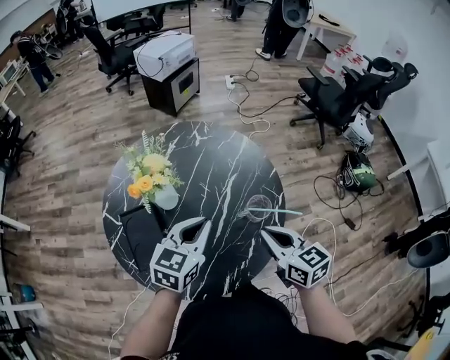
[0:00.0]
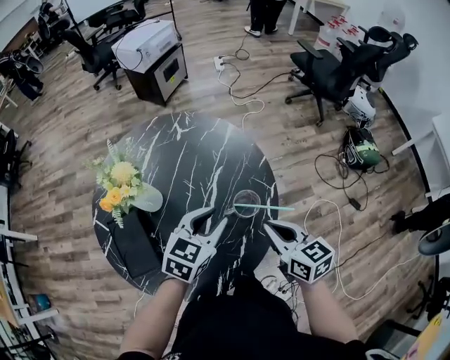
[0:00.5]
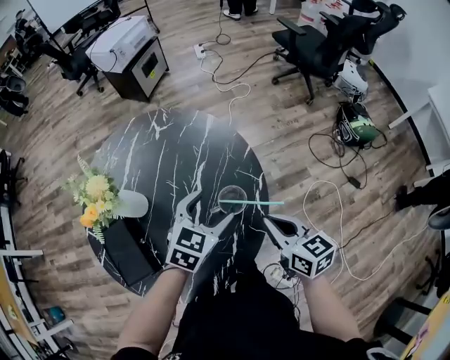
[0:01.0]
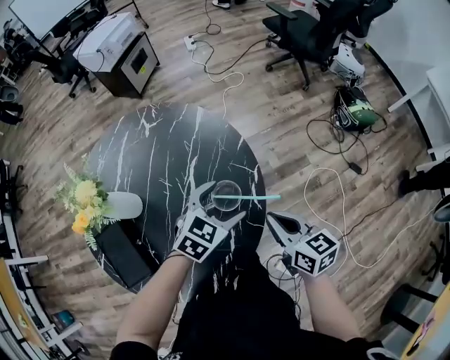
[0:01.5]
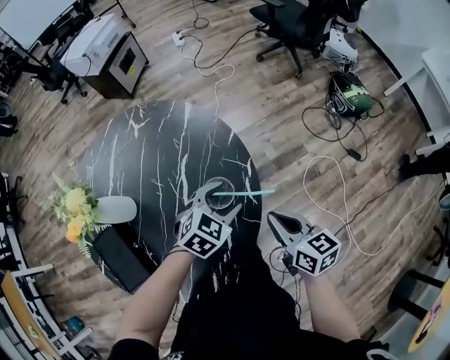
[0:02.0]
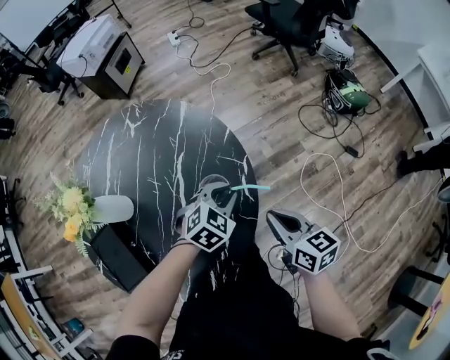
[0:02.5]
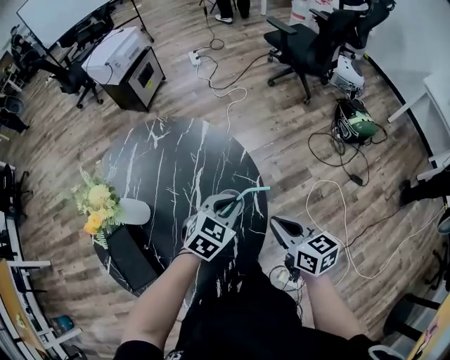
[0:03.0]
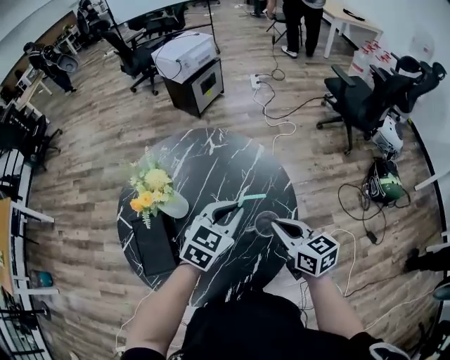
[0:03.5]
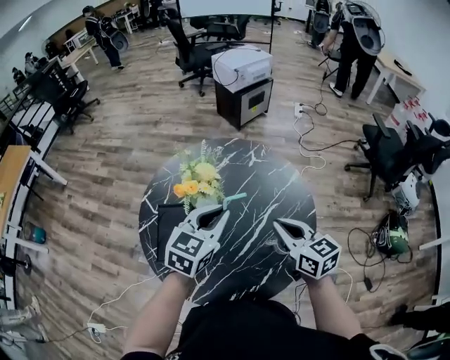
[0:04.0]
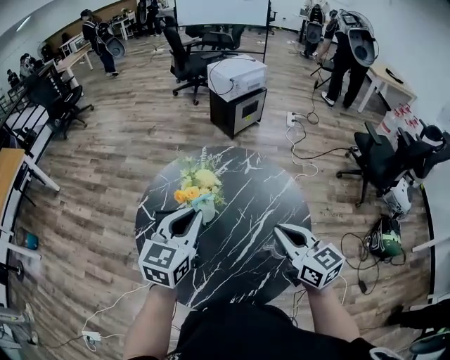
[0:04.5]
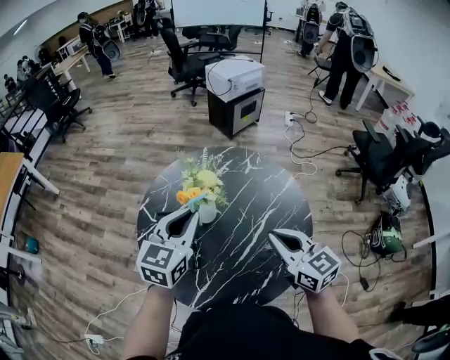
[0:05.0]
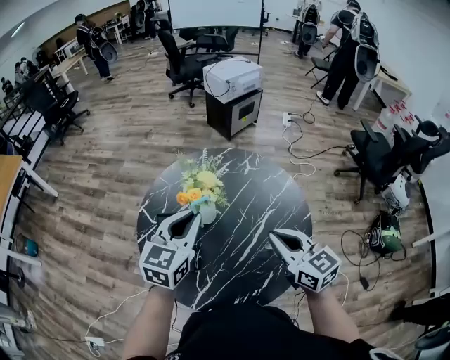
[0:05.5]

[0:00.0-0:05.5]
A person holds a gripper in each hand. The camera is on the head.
0:00.0 to 0:02.0: The two grippers go some 25 cm to the right and downward. The right gripper swivels roughly 20 degrees, while the left gripper turns by roughly 40 degrees, and opens its fingers.
0:02.0 to 0:03.5: The right gripper heads to the left, upward and forward, covering about 15 cm, and swivels about 30 degrees; the left gripper travels upward and to the left by approximately 20 cm, swivels approximately 30 degrees, and closes.
0:03.5 to 0:05.5: The left gripper shifts about 25 cm to the left and upward, and swivels about 30 degrees. Meanwhile the right gripper is displaced to the left and upward by some 15 cm, and turns by about 20 degrees.

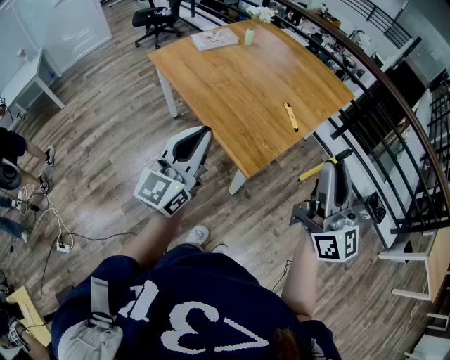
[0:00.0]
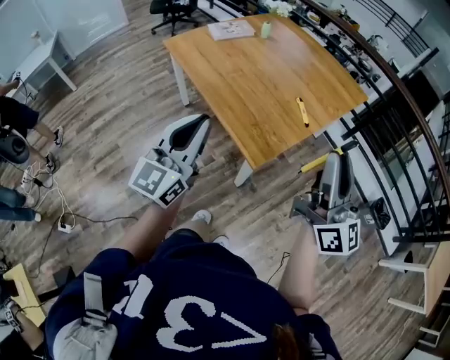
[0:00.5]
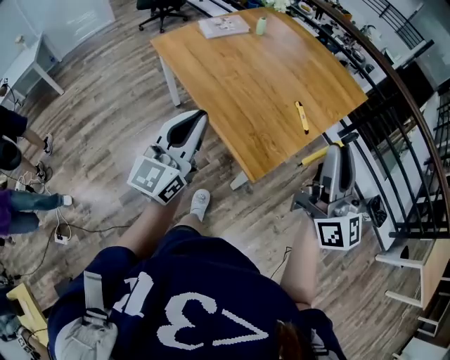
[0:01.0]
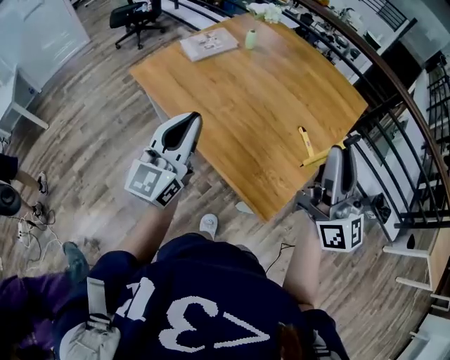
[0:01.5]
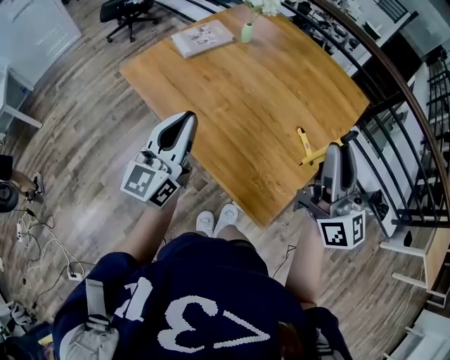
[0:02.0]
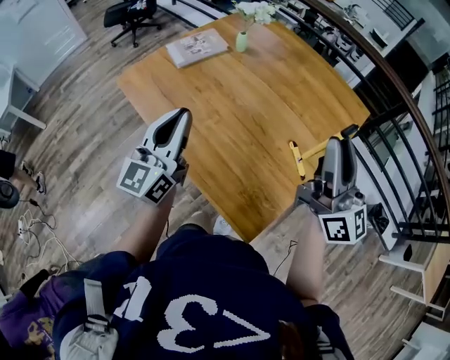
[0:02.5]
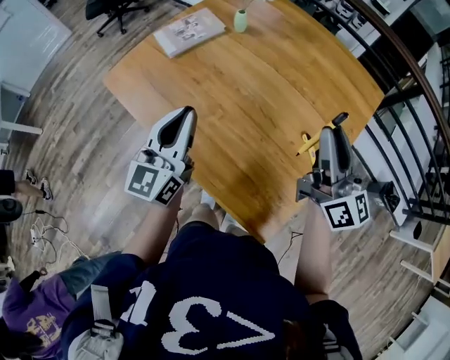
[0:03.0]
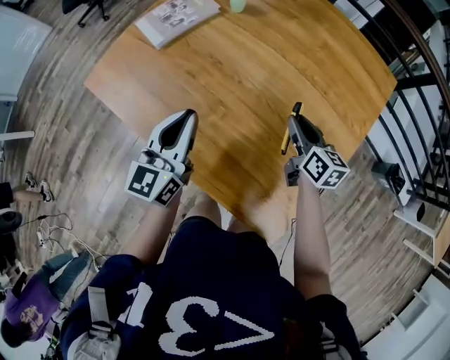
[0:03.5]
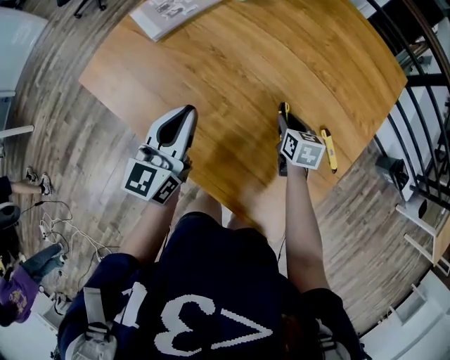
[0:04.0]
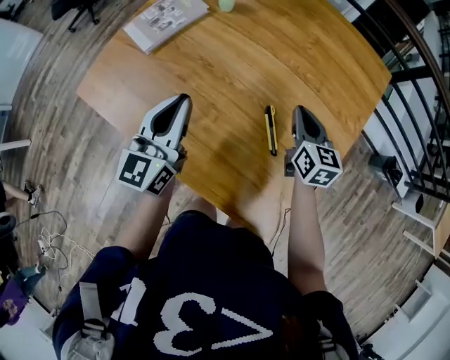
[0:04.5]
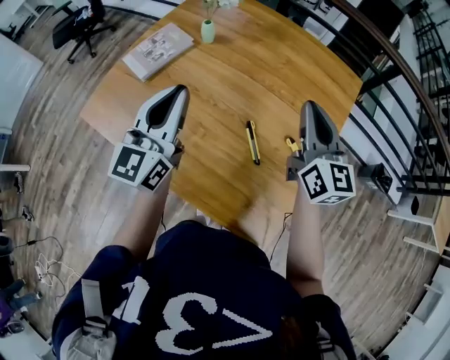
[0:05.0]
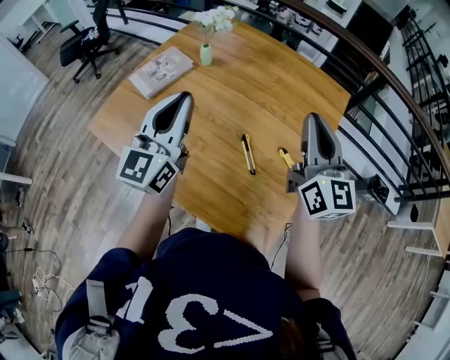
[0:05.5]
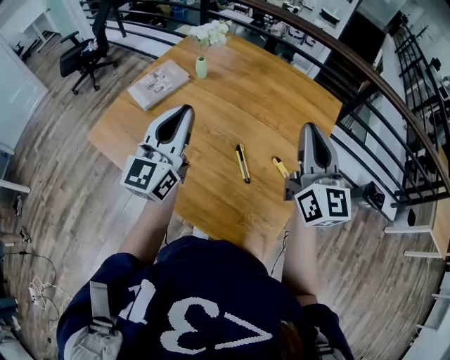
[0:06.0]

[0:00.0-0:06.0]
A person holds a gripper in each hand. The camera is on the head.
0:00.0 to 0:02.0: The right gripper is displaced forward by some 25 cm. Meanwhile the left gripper shifts roughly 30 cm forward and to the left.
0:02.0 to 0:04.0: The left gripper is displaced forward and downward by about 25 cm, while the right gripper goes roughly 50 cm downward and forward, and points its fingers roughly 70 degrees further downward.
0:04.0 to 0:06.0: The right gripper goes roughly 40 cm upward, tips its fingers upward by some 60 degrees, and closes up. The left gripper heads upward, covering roughly 20 cm, and turns by some 20 degrees.

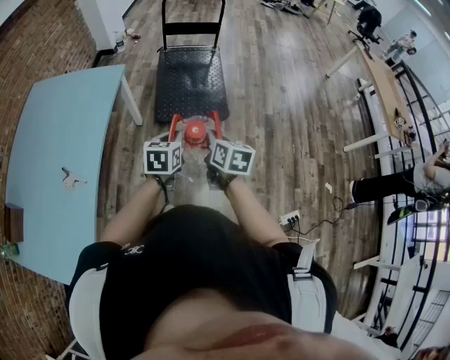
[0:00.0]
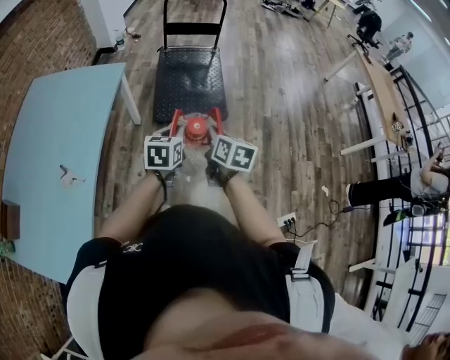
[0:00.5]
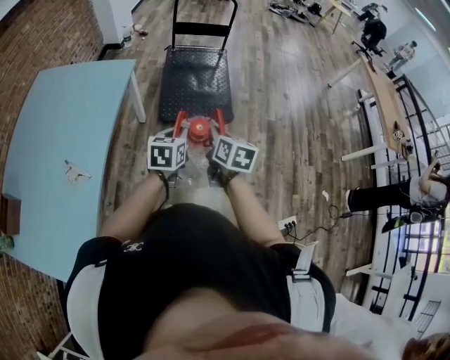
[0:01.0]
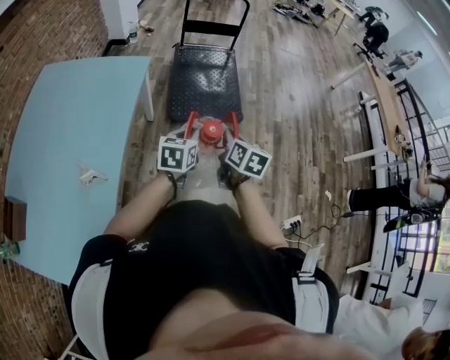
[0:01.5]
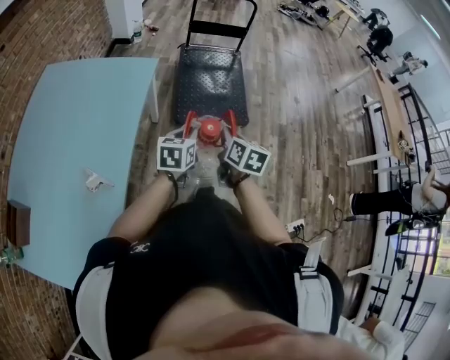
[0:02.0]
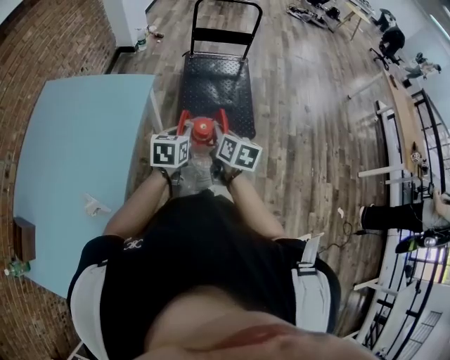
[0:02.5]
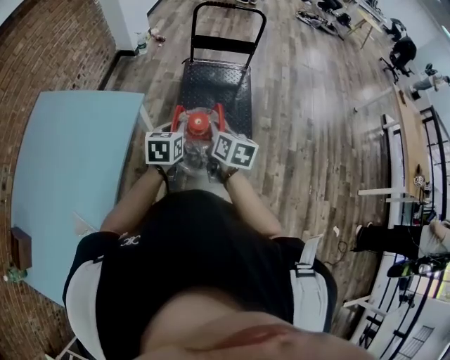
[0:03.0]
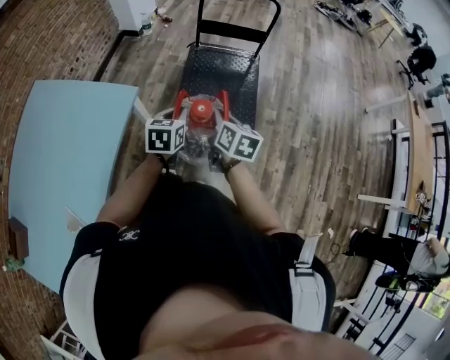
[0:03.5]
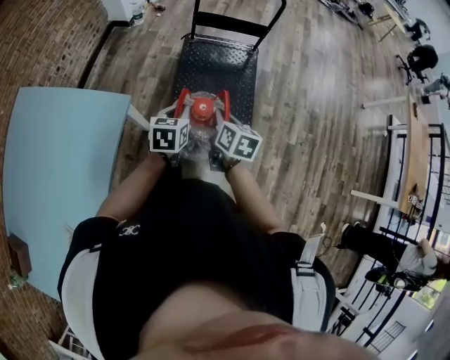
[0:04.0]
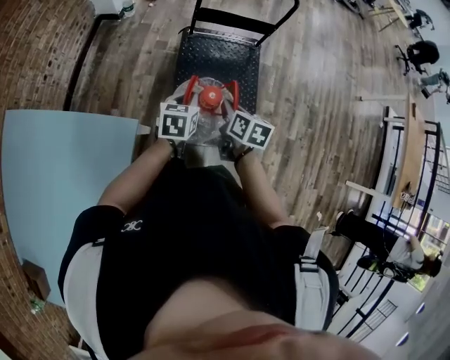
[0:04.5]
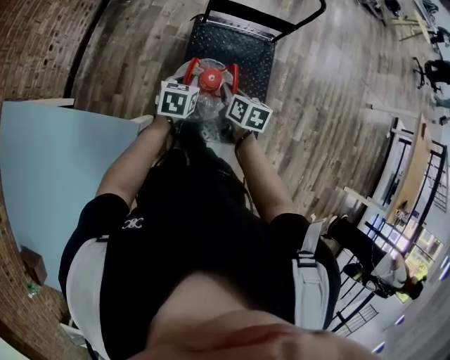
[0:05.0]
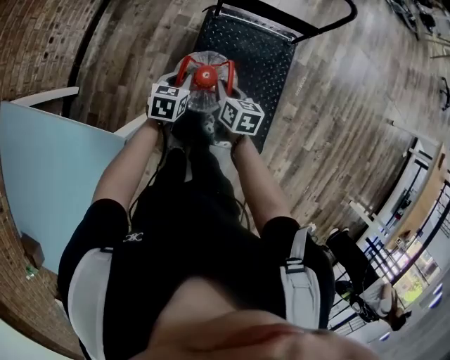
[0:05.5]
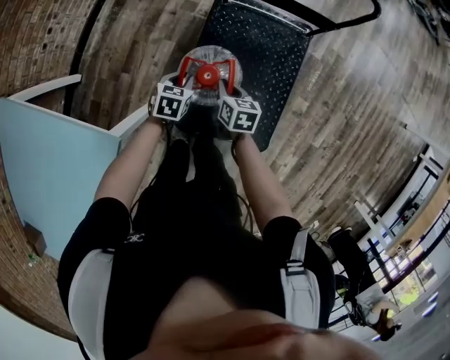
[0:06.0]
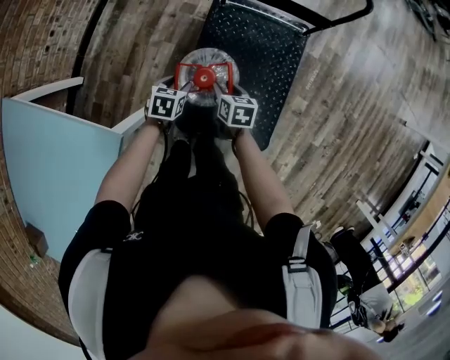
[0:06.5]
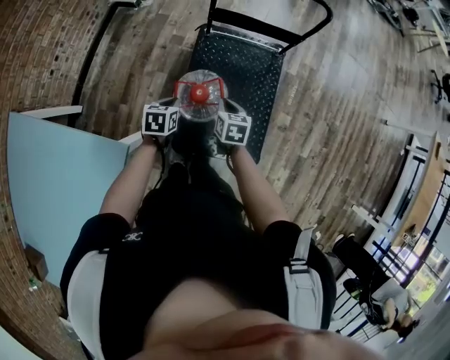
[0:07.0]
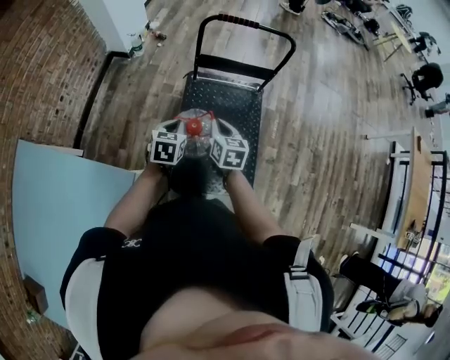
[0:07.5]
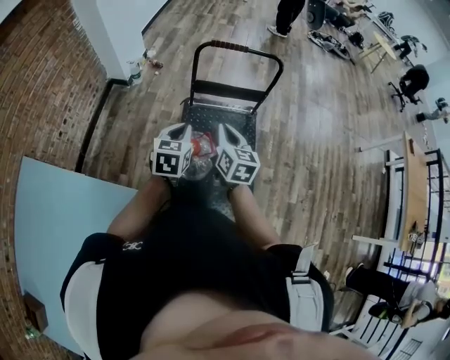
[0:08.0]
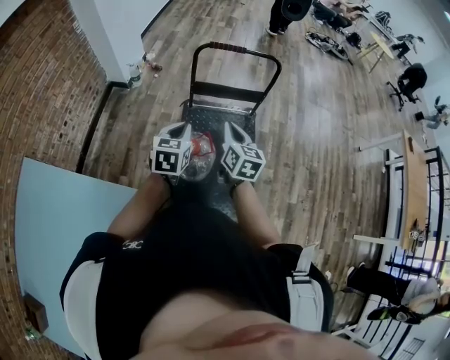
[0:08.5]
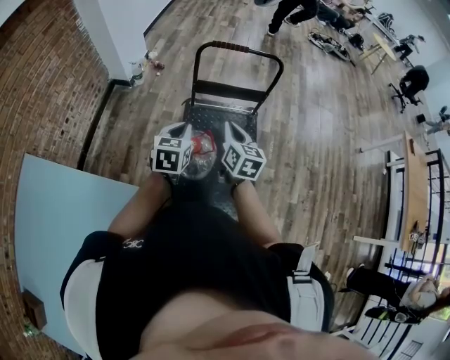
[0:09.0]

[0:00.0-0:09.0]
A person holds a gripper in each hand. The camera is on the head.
0:00.0 to 0:02.0: Both grippers travel together to the left, about 15 cm.
0:02.0 to 0:04.5: Both grippers are carried forward, some 50 cm.
0:04.5 to 0:07.0: Both grippers move downward and forward, about 20 cm. The left gripper opens and closes again, while the right gripper opens, then closes once more.
0:07.0 to 0:09.0: Both grippers move upward, roughly 25 cm. The left gripper swivels roughly 30 degrees, while the right gripper swivels about 30 degrees.

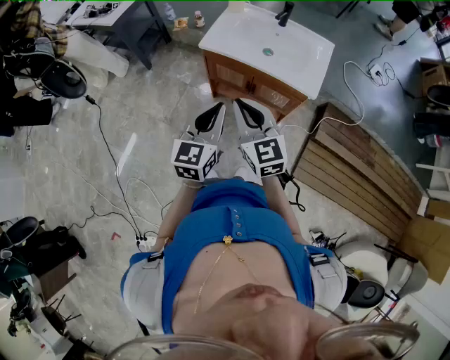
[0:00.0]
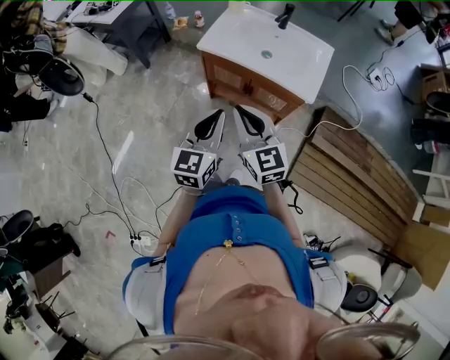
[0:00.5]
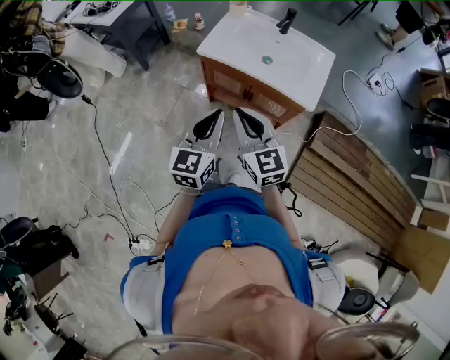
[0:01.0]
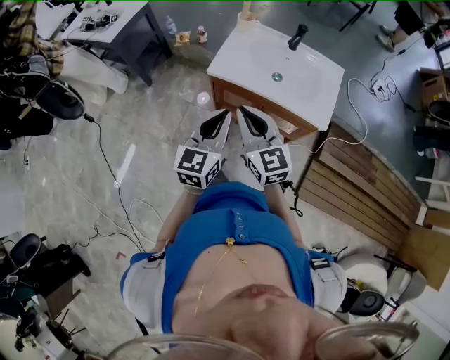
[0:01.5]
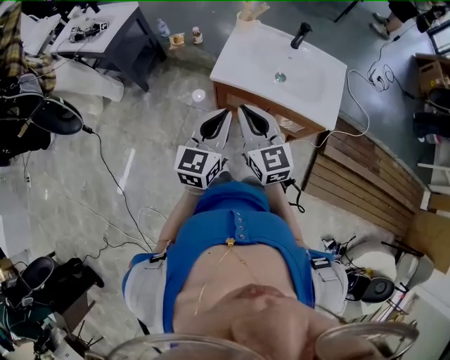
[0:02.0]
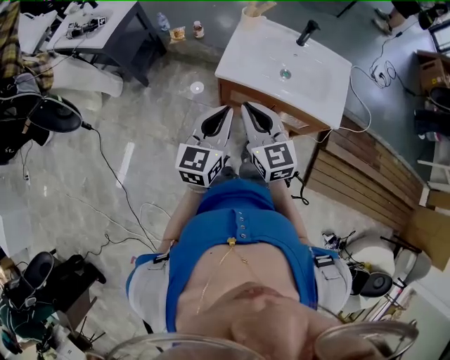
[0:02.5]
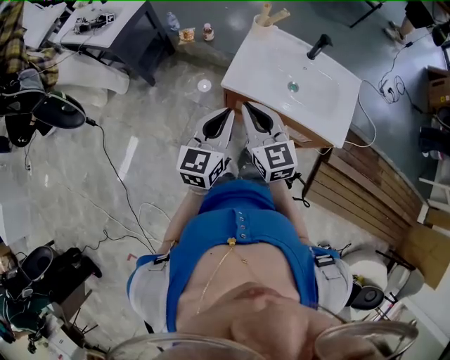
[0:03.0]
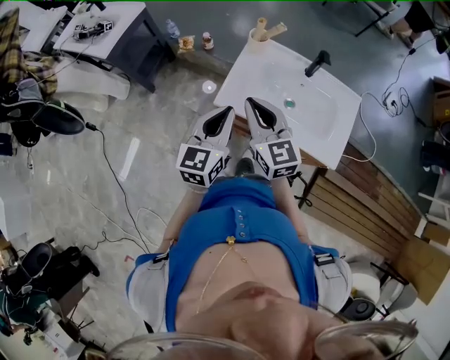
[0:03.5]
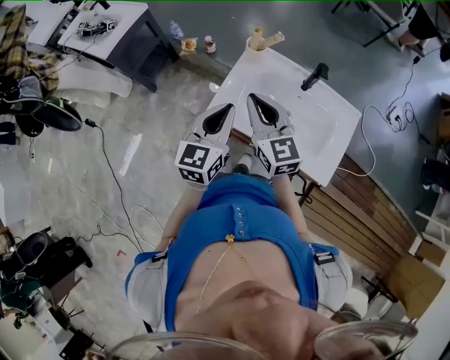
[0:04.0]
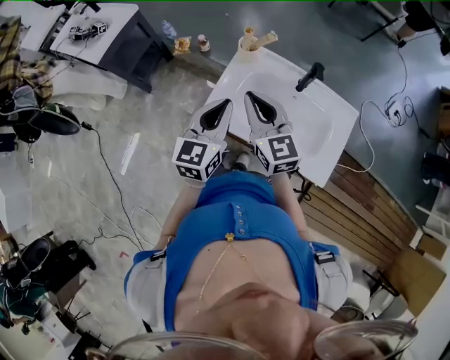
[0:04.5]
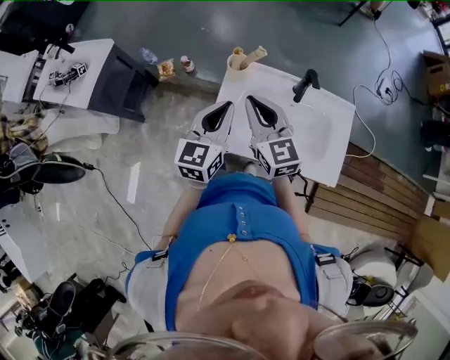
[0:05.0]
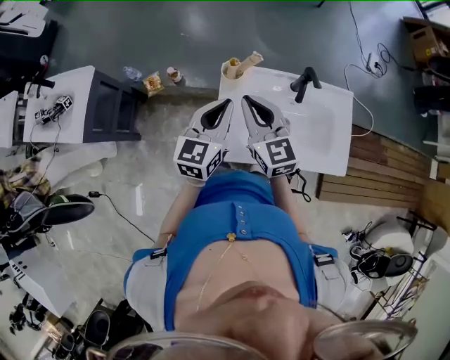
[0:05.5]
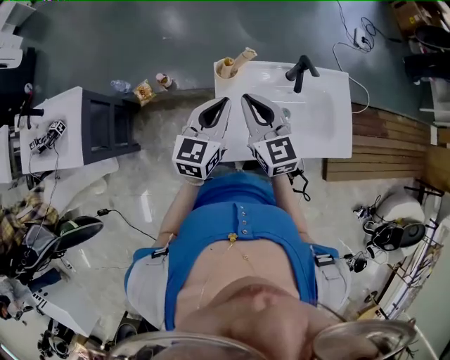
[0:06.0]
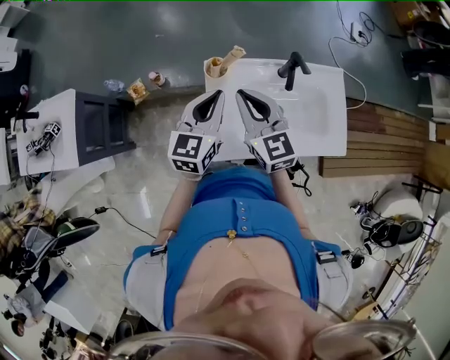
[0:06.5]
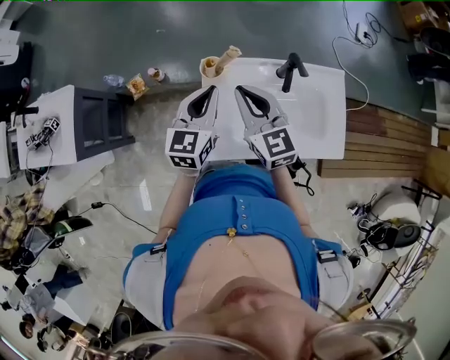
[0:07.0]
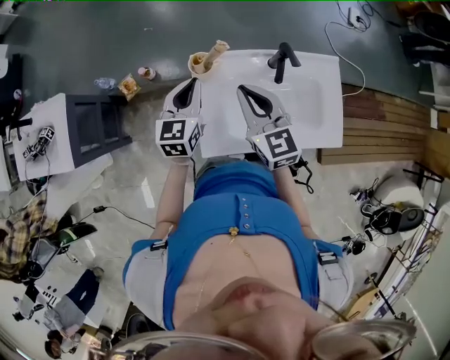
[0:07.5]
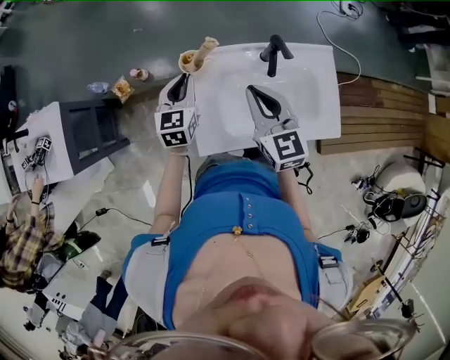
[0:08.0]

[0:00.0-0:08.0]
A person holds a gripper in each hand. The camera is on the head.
0:00.0 to 0:02.0: The grippers both shift forward and to the left by some 20 cm.
0:02.0 to 0:04.0: Both grippers move forward, roughly 20 cm.
0:04.0 to 0:06.0: The right gripper ends up about 15 cm from where it was, and changes its angle by roughly 30 degrees. The left gripper ends up about 20 cm from where it was, and swivels roughly 30 degrees.
0:06.0 to 0:08.0: The right gripper heads to the right, covering some 10 cm, while the left gripper heads downward and forward, covering approximately 15 cm.
